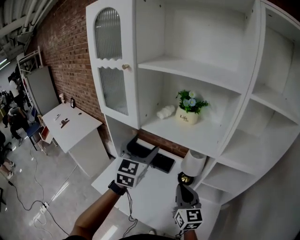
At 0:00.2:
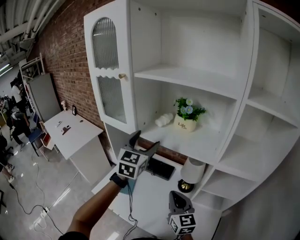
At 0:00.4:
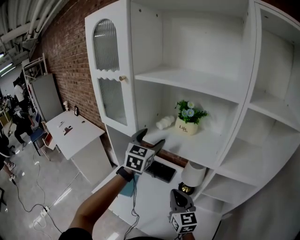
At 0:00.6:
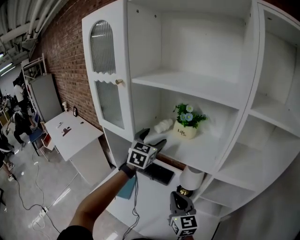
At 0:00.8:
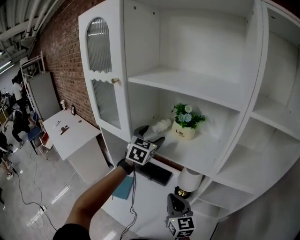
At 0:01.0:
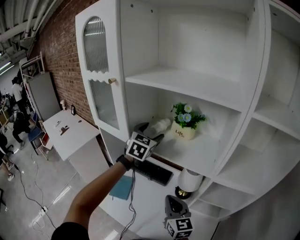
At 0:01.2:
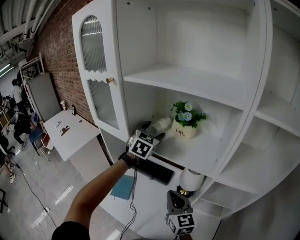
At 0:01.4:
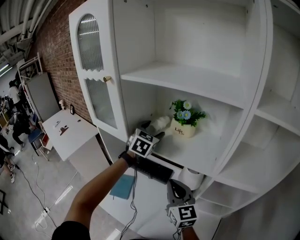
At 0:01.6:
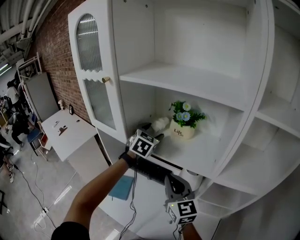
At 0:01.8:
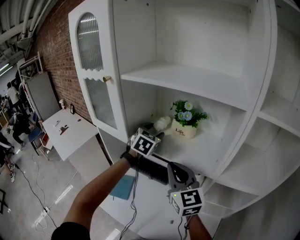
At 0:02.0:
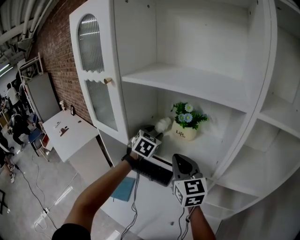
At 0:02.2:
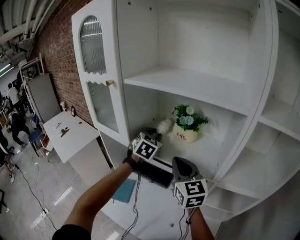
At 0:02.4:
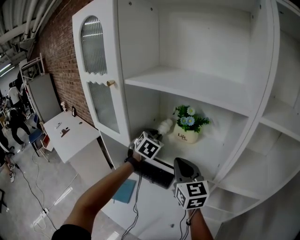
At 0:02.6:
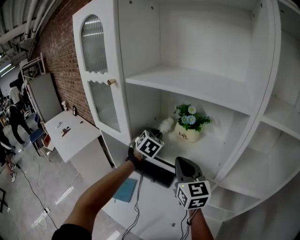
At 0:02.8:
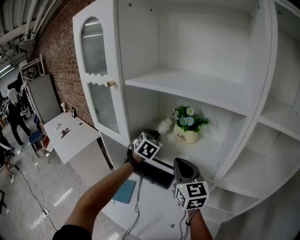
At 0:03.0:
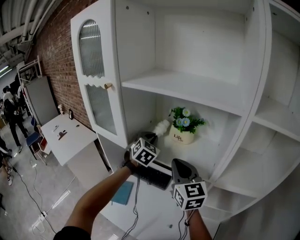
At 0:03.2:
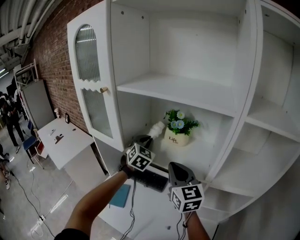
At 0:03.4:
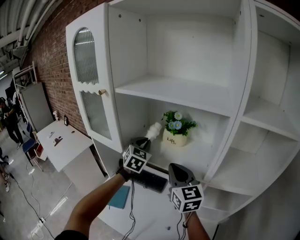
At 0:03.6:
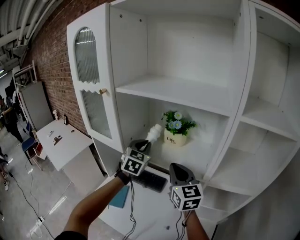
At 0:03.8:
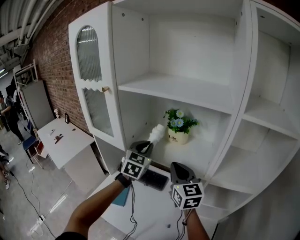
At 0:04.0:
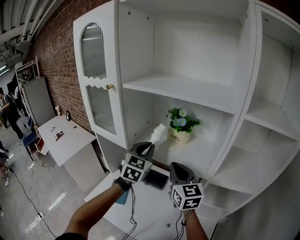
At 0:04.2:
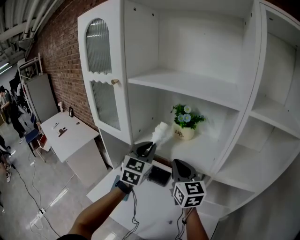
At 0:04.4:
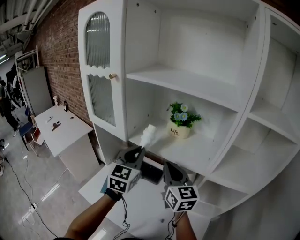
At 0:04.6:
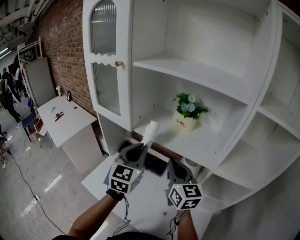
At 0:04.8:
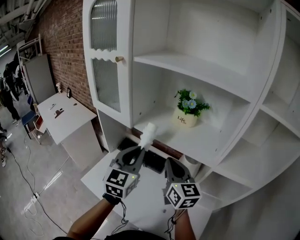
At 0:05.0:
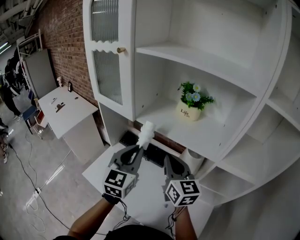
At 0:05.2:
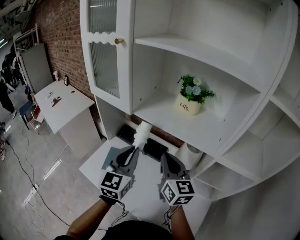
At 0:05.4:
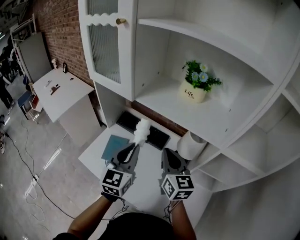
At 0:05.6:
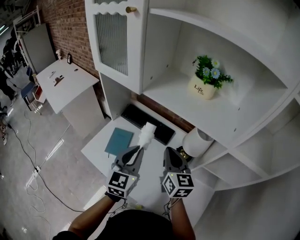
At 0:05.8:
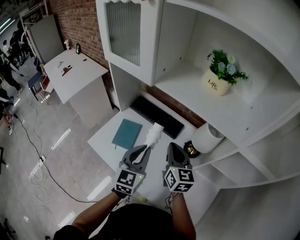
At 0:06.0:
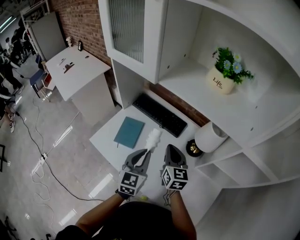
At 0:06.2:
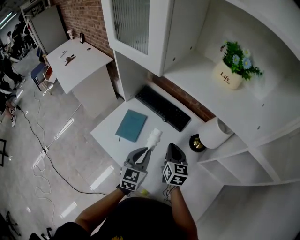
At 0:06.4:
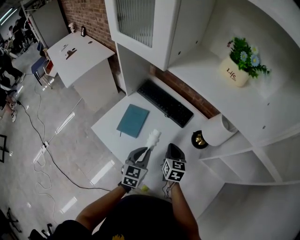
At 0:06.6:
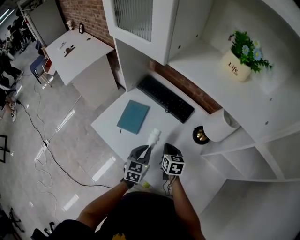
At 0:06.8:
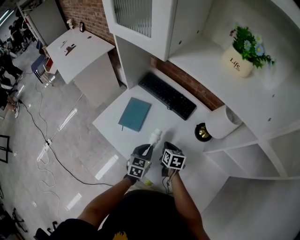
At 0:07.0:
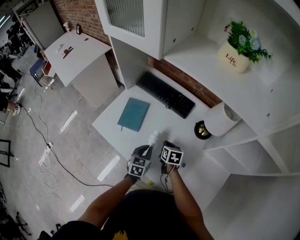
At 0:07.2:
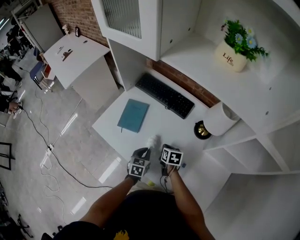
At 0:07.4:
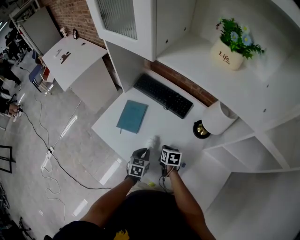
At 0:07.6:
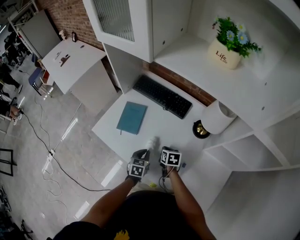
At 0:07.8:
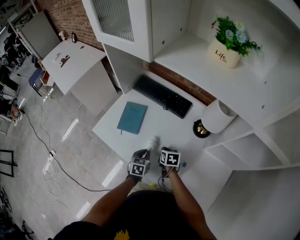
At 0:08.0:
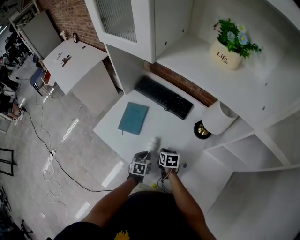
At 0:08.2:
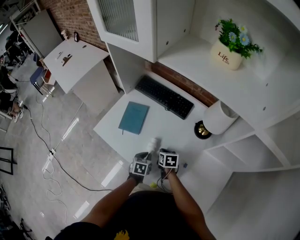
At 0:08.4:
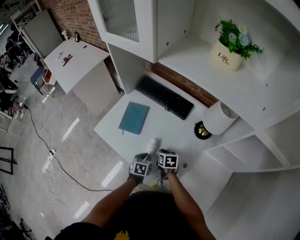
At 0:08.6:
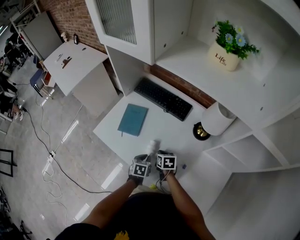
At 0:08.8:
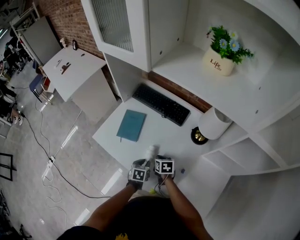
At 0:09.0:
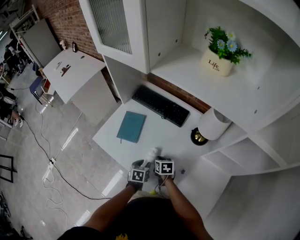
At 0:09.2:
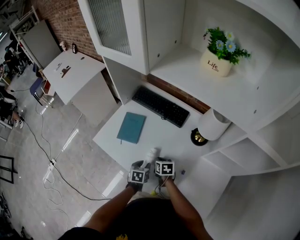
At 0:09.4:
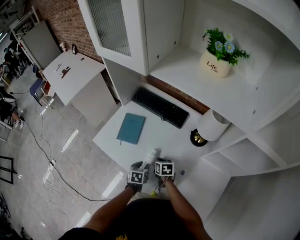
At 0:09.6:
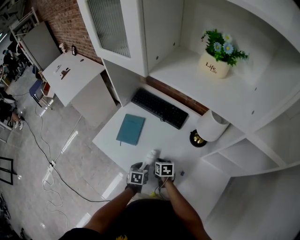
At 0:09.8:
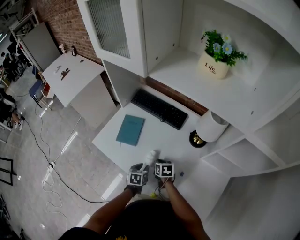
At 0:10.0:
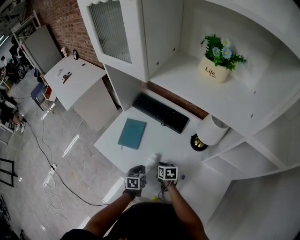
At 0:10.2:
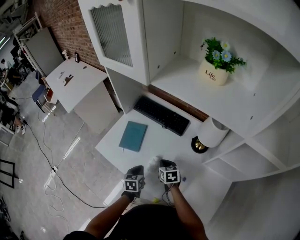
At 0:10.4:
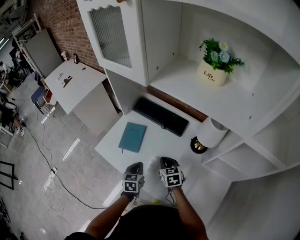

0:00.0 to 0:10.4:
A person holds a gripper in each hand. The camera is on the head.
0:00.0 to 0:01.4: The right gripper goes roughly 10 cm forward. Meanwhile the left gripper goes some 20 cm forward.
0:01.4 to 0:03.0: The right gripper heads upward and forward, covering about 10 cm; the left gripper closes its fingers.
0:03.0 to 0:04.4: The left gripper travels backward by some 15 cm, and changes its angle by approximately 30 degrees; the right gripper ends up about 5 cm from where it was.
0:04.4 to 0:06.0: The right gripper moves downward, approximately 25 cm, while the left gripper is displaced downward and backward by approximately 30 cm.
0:06.0 to 0:07.4: Both grippers move downward, some 25 cm. The right gripper tips its fingers downward by roughly 40 degrees, while the left gripper rotates some 30 degrees.
0:07.4 to 0:09.0: The grippers move only a little.
0:09.0 to 0:10.4: The two grippers go about 10 cm upward. The right gripper changes its angle by roughly 20 degrees.

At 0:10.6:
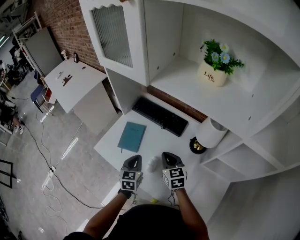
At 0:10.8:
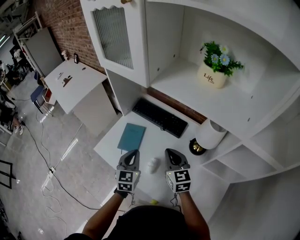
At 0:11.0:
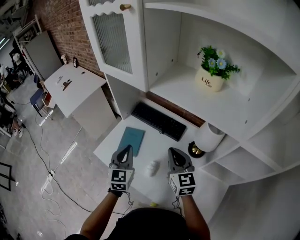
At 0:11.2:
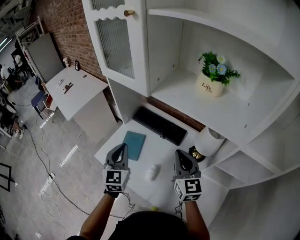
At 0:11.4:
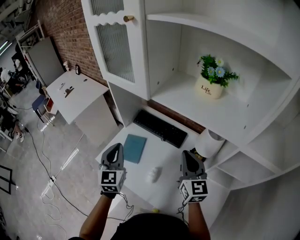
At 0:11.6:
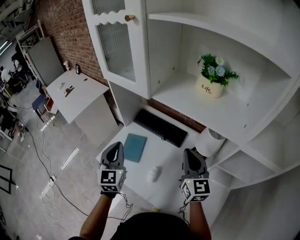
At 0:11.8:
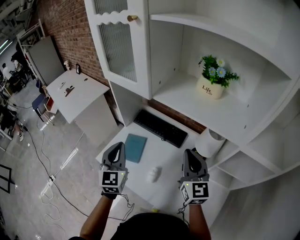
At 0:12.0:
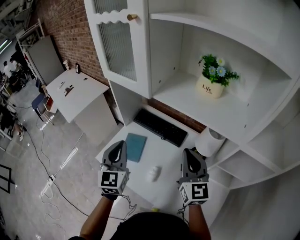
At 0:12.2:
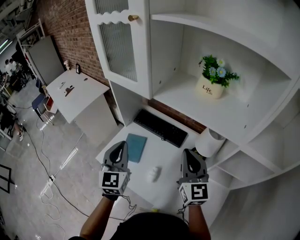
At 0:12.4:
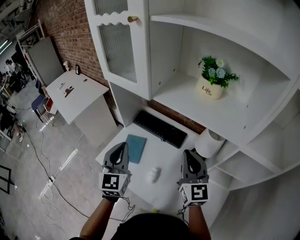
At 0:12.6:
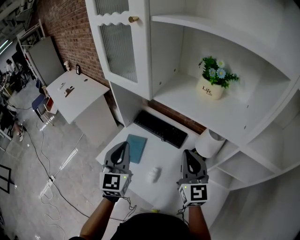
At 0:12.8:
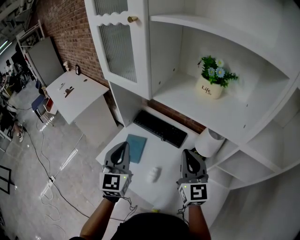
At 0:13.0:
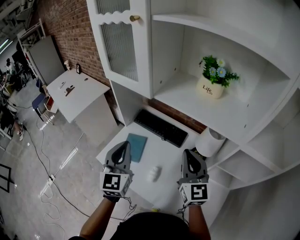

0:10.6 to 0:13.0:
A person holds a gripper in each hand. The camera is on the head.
0:10.6 to 0:11.8: Both grippers travel together upward, approximately 20 cm. The left gripper rotates roughly 30 degrees; the right gripper rotates about 30 degrees.
0:11.8 to 0:13.0: The left gripper changes place by about 5 cm.

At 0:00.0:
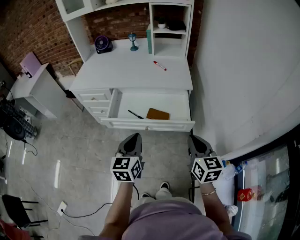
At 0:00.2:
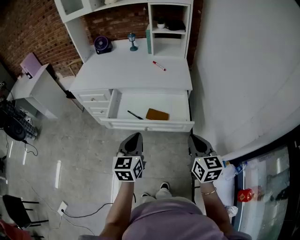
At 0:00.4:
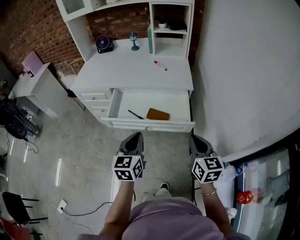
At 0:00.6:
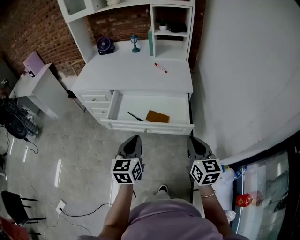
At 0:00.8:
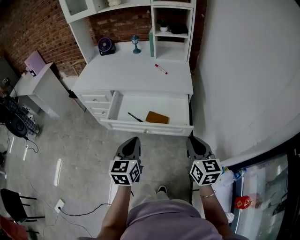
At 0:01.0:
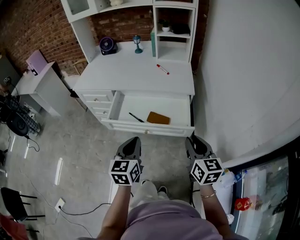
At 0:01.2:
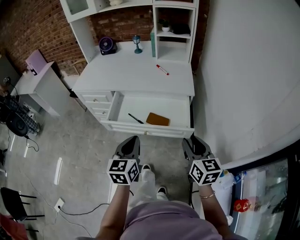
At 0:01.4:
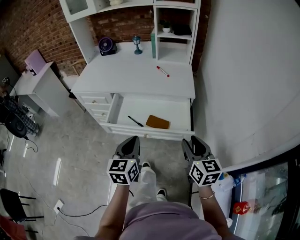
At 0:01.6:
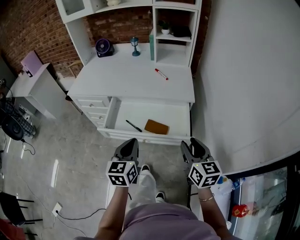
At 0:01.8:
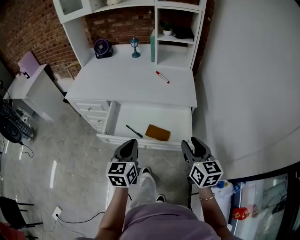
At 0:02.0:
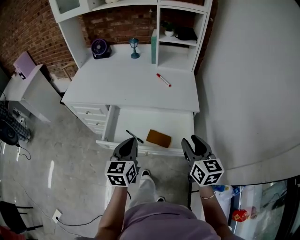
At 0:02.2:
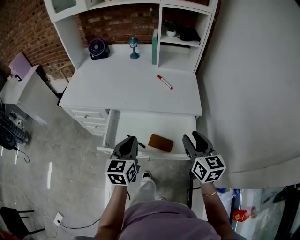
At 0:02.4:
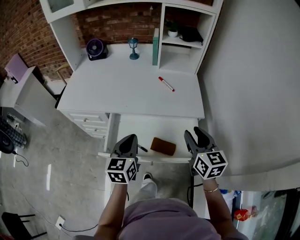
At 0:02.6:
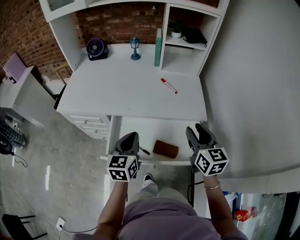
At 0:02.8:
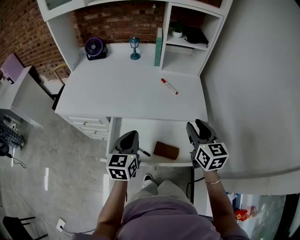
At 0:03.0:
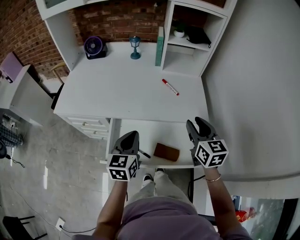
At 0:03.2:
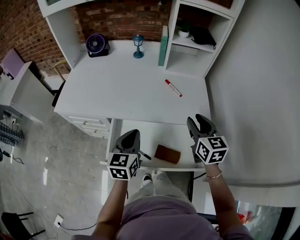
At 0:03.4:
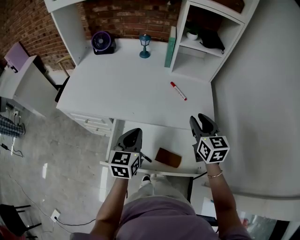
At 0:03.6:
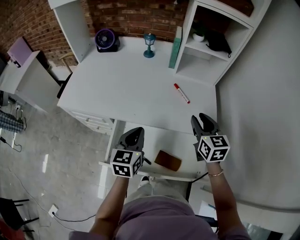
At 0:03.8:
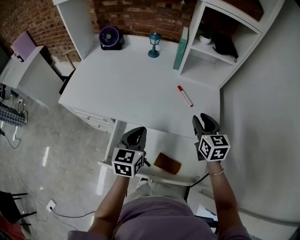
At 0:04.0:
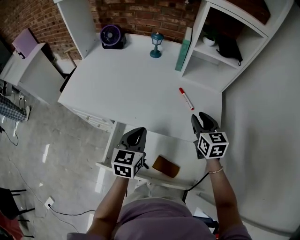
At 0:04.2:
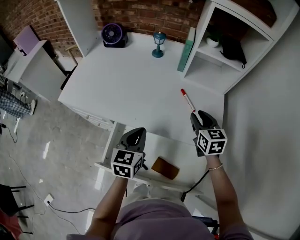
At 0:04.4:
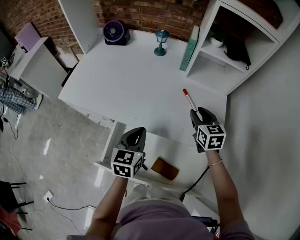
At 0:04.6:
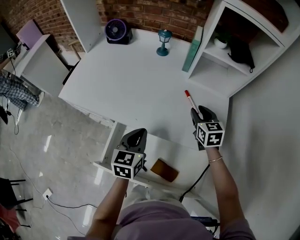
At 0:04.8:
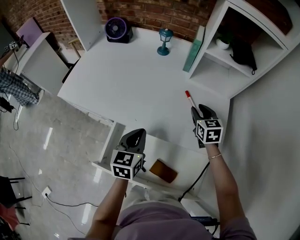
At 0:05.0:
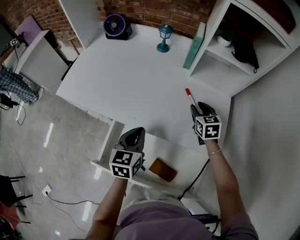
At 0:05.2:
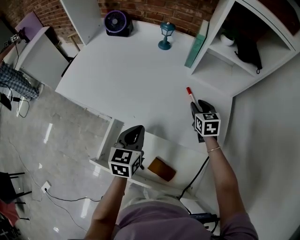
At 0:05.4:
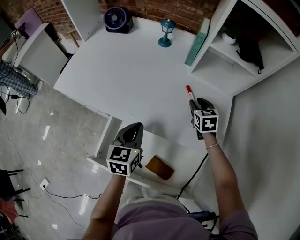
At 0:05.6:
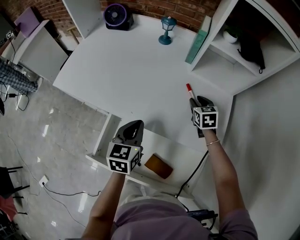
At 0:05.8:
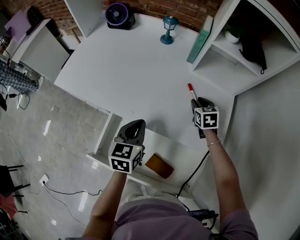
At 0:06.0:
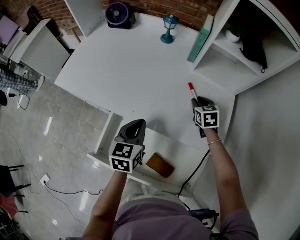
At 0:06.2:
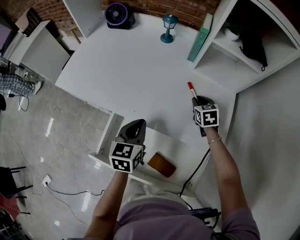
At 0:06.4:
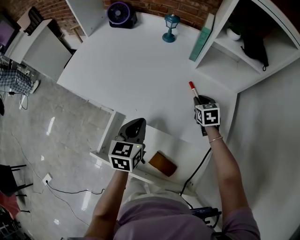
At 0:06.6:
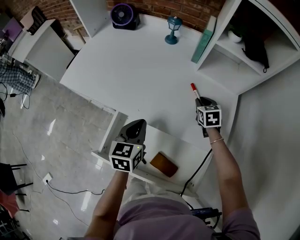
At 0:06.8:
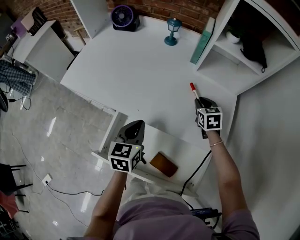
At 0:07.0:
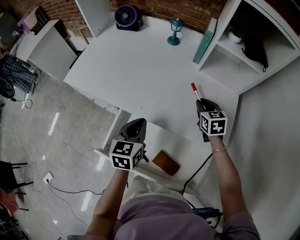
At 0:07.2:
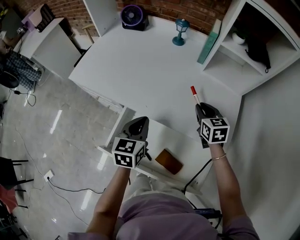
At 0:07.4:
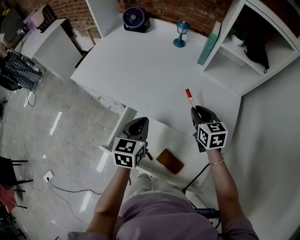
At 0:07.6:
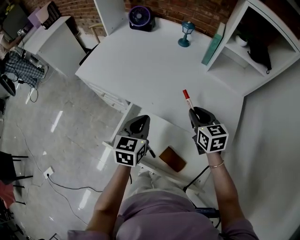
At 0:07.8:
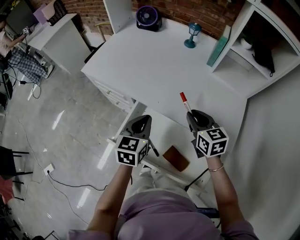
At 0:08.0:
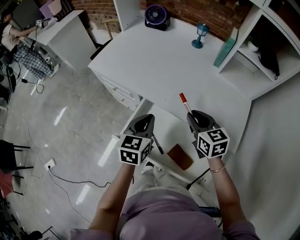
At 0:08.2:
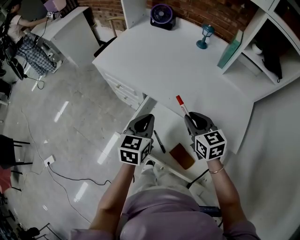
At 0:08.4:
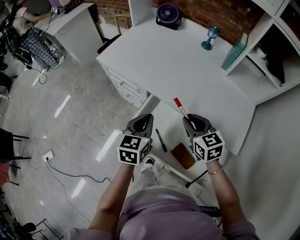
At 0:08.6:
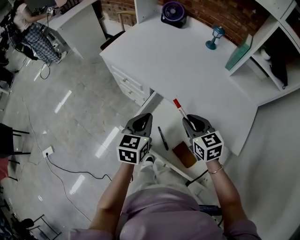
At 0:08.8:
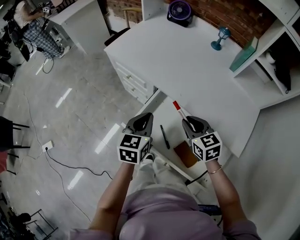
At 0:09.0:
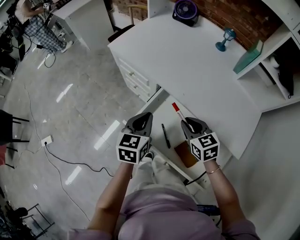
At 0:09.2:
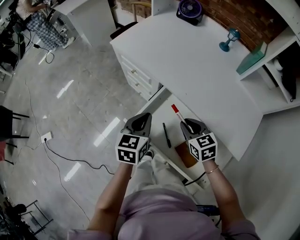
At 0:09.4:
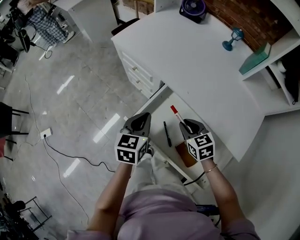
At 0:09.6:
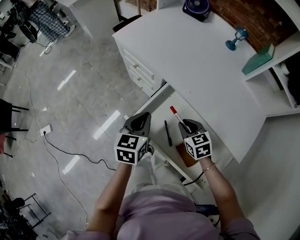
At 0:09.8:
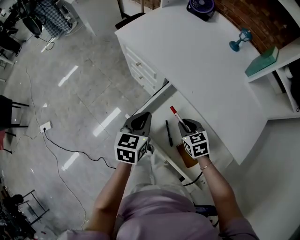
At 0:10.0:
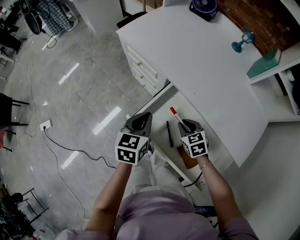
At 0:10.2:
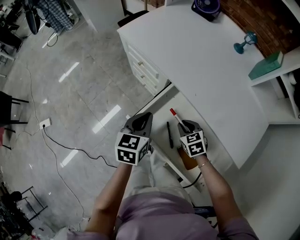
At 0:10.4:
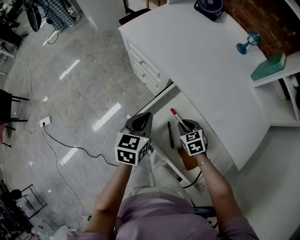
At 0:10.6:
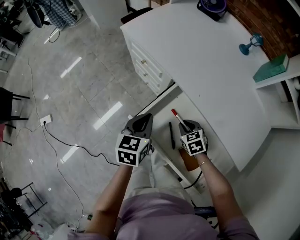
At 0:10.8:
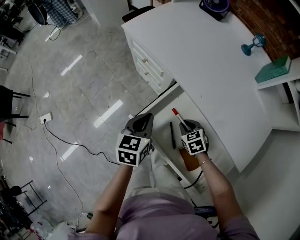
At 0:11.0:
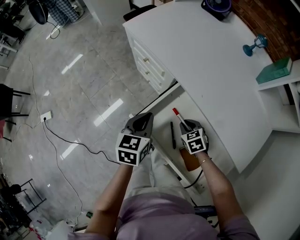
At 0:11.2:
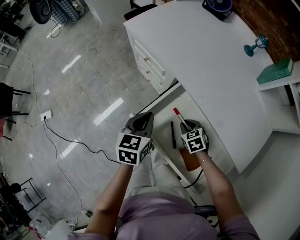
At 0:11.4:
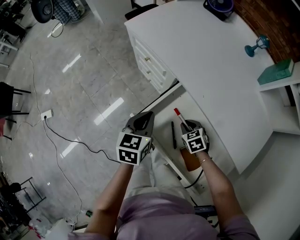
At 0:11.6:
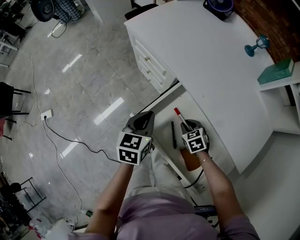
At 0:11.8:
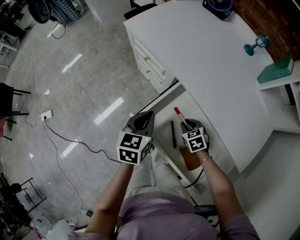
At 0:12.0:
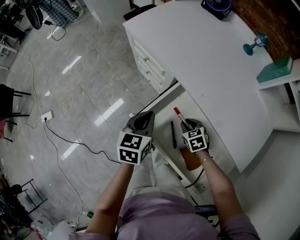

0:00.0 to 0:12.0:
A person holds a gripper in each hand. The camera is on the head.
0:00.0 to 0:01.6: Both grippers travel together forward, some 5 cm. The right gripper opens its fingers.
0:01.6 to 0:03.0: The two grippers go about 25 cm forward.
0:03.0 to 0:04.4: The right gripper goes some 25 cm forward and downward. The left gripper travels forward by some 10 cm.
0:04.4 to 0:06.0: The right gripper shifts approximately 15 cm downward and forward.
0:06.0 to 0:07.6: The right gripper heads backward, to the left and upward, covering roughly 20 cm, and rotates approximately 20 degrees. The left gripper shifts approximately 5 cm to the left.
0:07.6 to 0:09.0: Both grippers move to the left, approximately 15 cm. The right gripper turns by about 20 degrees.
0:09.0 to 0:10.4: The right gripper moves downward, roughly 15 cm, and turns by roughly 20 degrees; the left gripper ends up some 5 cm from where it was.
0:10.4 to 0:12.0: There are only small adjustments of the grippers.
